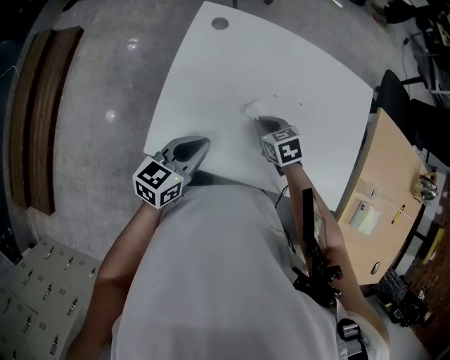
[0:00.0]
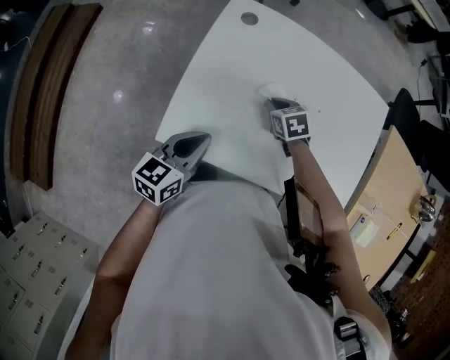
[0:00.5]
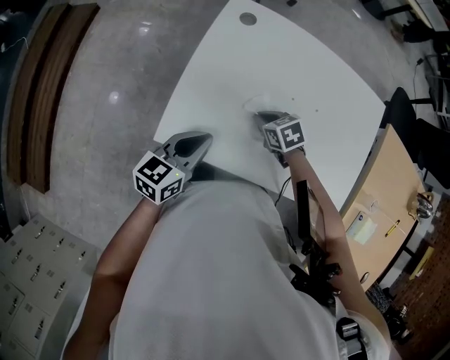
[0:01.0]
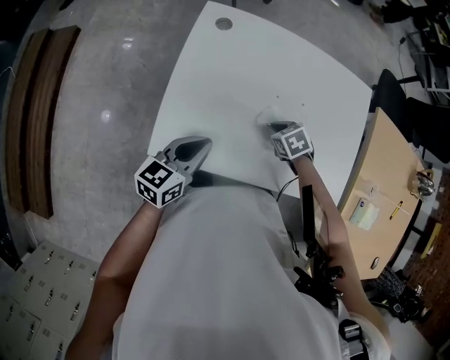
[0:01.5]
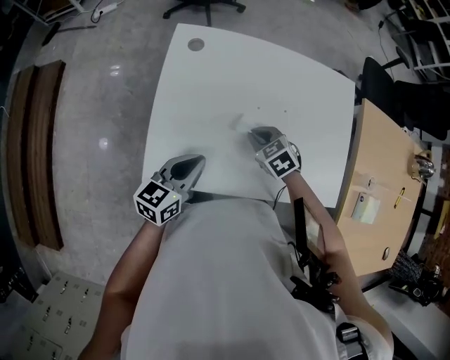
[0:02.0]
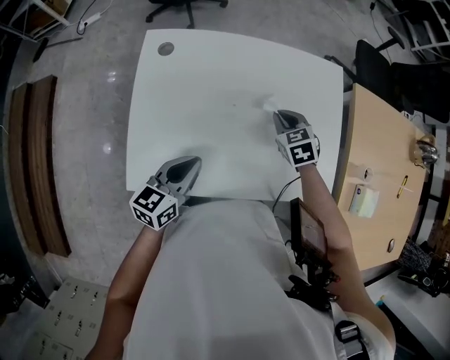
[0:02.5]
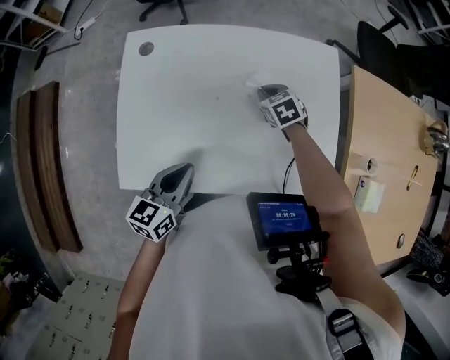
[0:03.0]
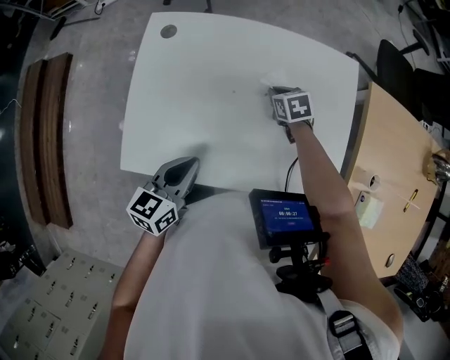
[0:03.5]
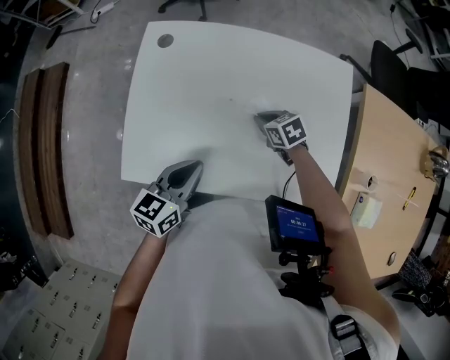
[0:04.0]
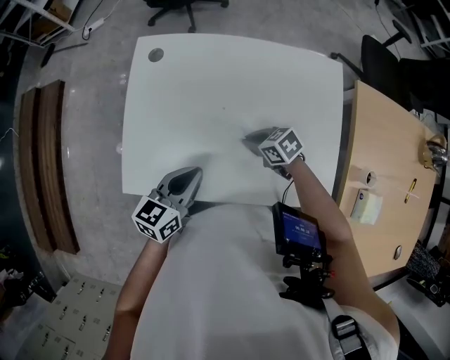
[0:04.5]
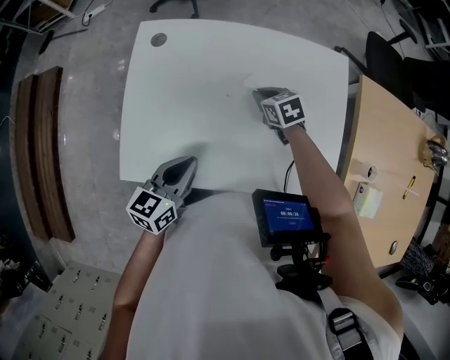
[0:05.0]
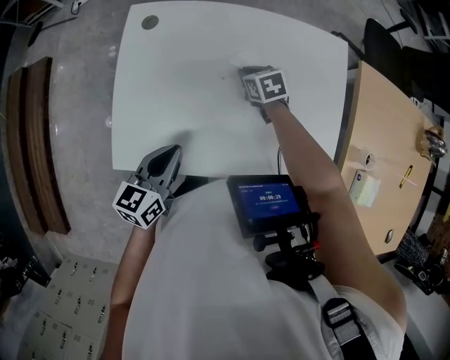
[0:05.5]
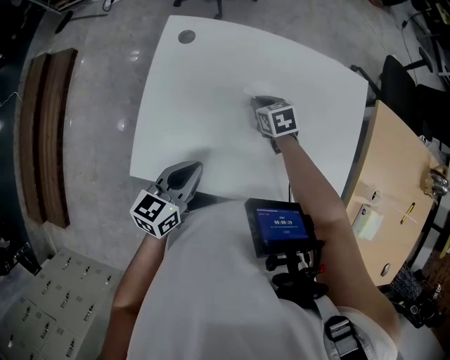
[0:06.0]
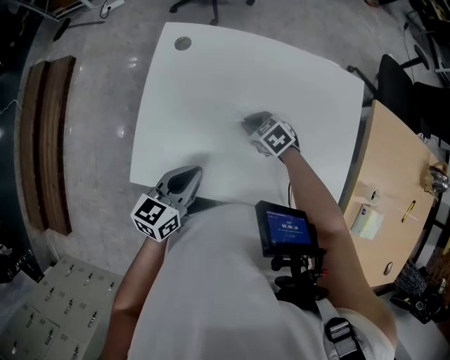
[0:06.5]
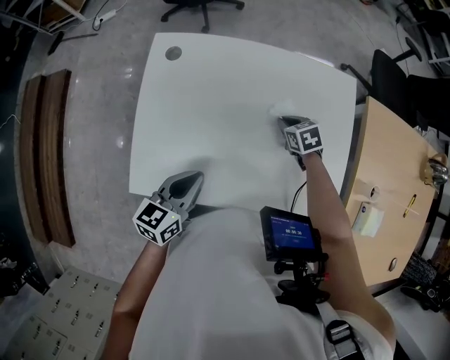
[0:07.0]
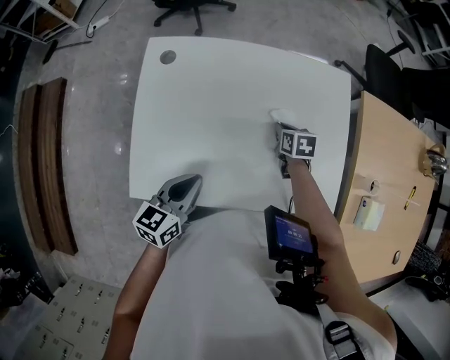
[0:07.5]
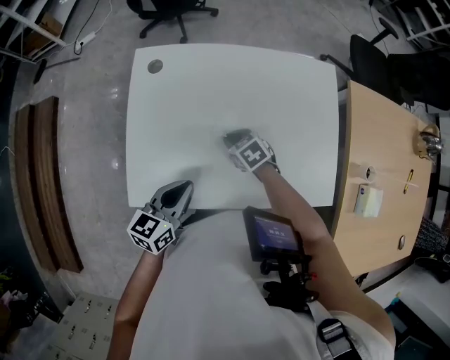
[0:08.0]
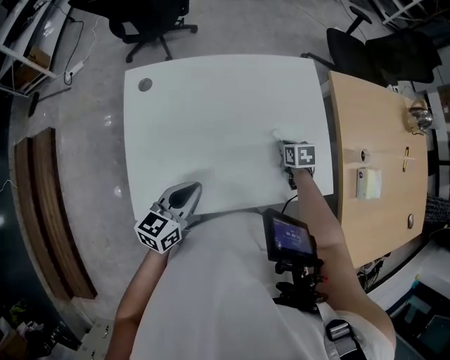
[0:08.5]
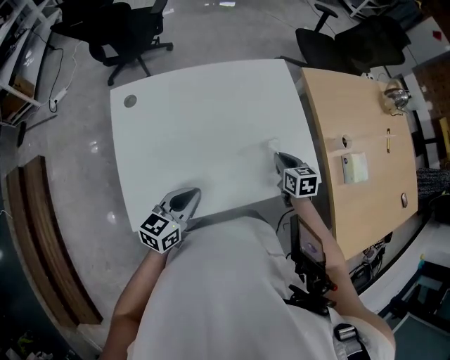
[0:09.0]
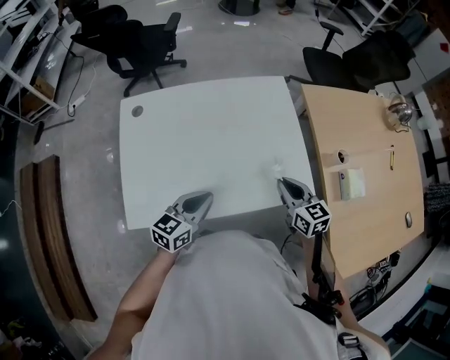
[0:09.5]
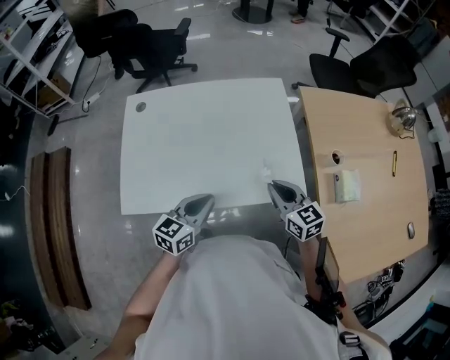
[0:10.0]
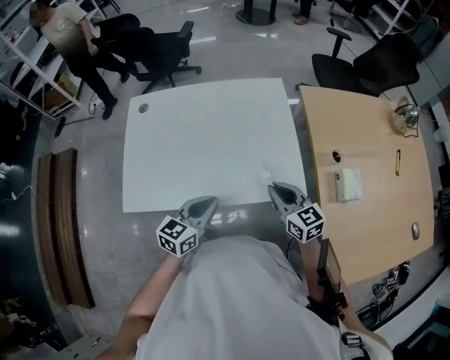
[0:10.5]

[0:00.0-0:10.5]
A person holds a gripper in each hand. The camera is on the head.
0:00.0 to 0:02.0: The right gripper travels to the left and back again, approximately 5 cm each way.
0:02.0 to 0:04.0: The right gripper is displaced to the right and forward by roughly 10 cm, and swivels about 20 degrees, while the left gripper travels to the right by about 10 cm.
0:04.0 to 0:06.5: The right gripper goes forward and backward, approximately 15 cm each way, reversing 2 times, and swivels approximately 20 degrees.
0:06.5 to 0:08.5: The right gripper changes place by about 25 cm, and twists roughly 50 degrees clockwise, seen from behind.
0:08.5 to 0:10.5: The right gripper shifts about 25 cm upward and backward, and tips its fingers upward by some 40 degrees. The left gripper moves to the right, approximately 20 cm.

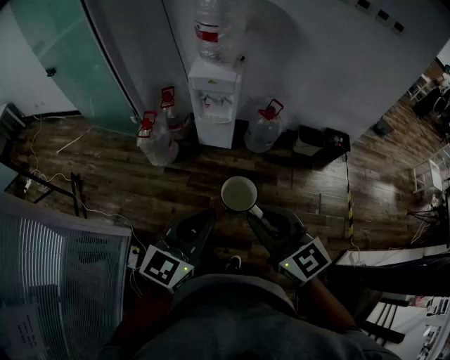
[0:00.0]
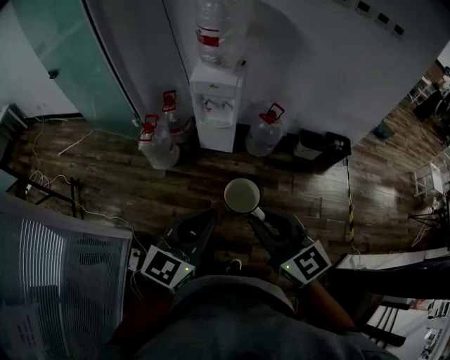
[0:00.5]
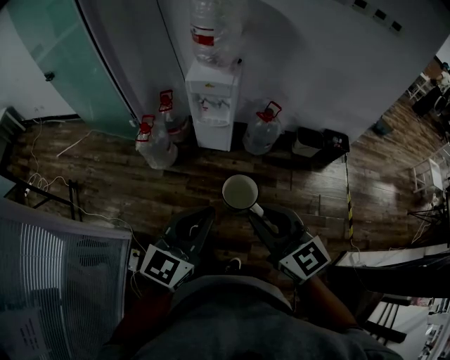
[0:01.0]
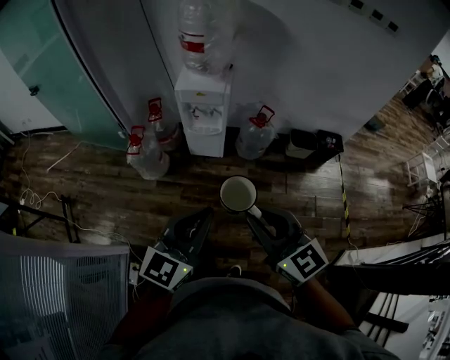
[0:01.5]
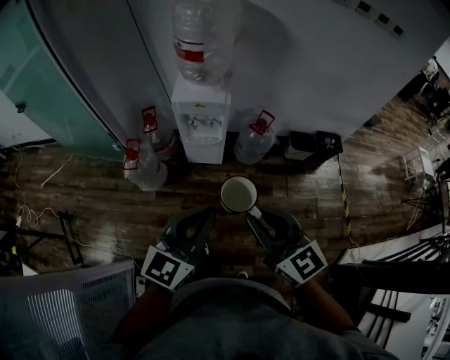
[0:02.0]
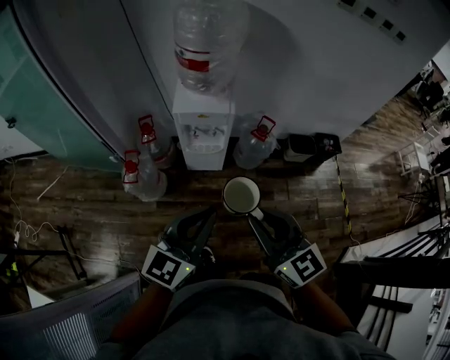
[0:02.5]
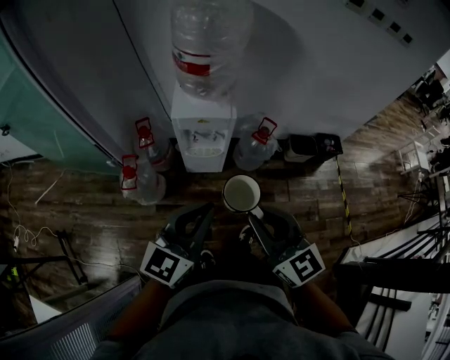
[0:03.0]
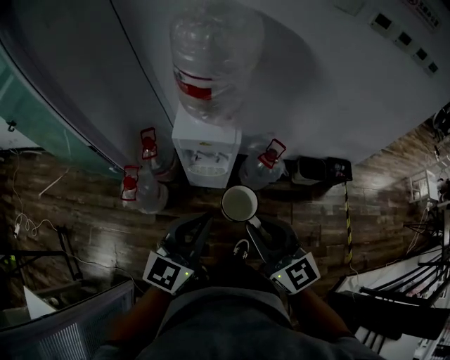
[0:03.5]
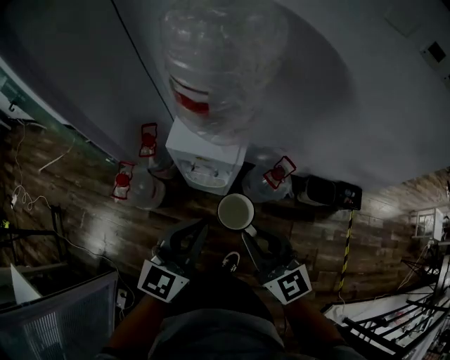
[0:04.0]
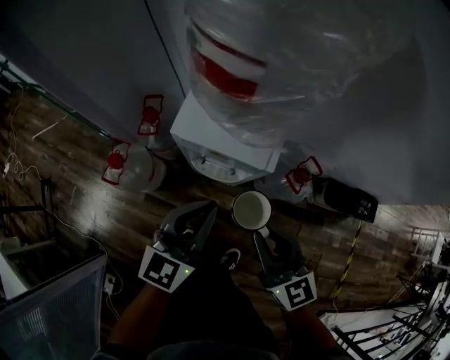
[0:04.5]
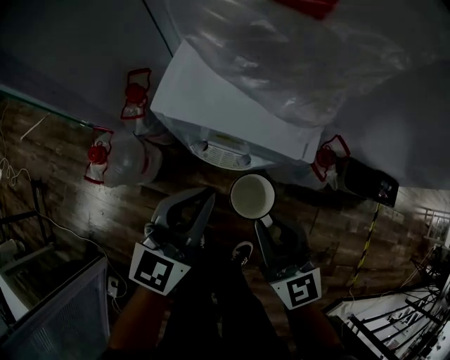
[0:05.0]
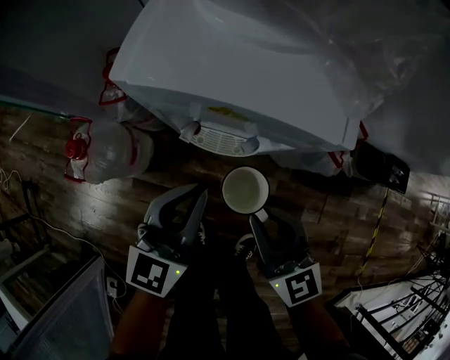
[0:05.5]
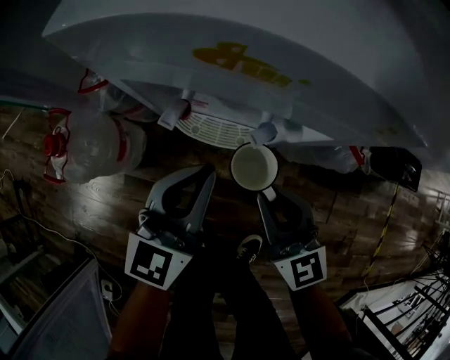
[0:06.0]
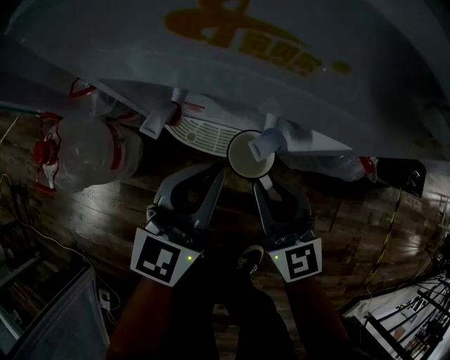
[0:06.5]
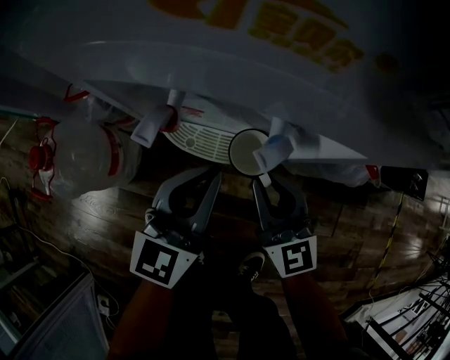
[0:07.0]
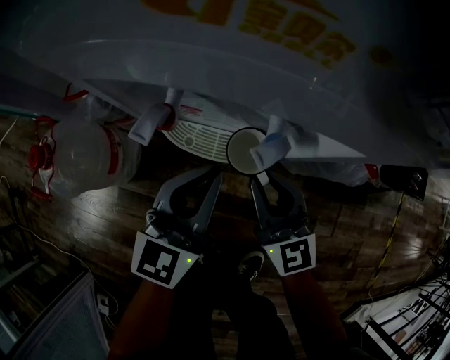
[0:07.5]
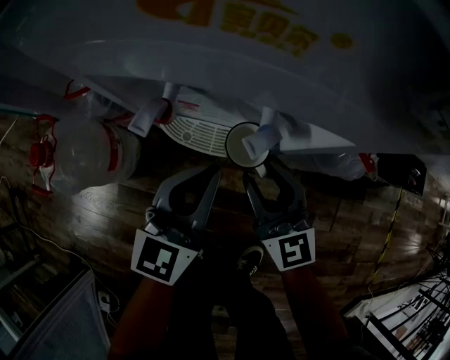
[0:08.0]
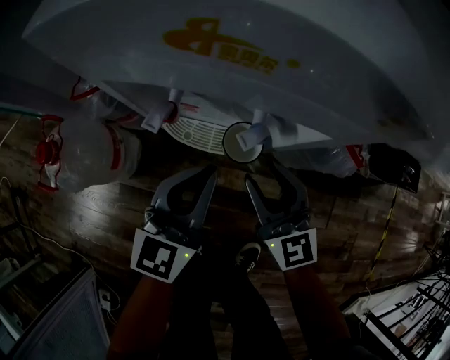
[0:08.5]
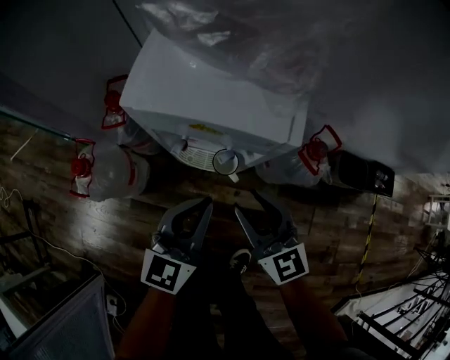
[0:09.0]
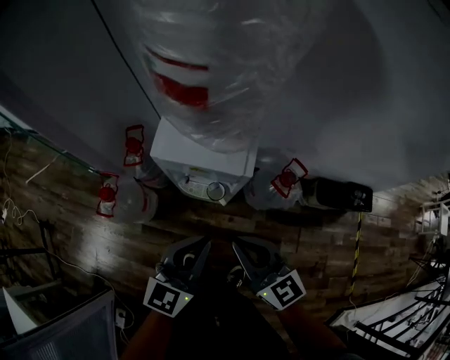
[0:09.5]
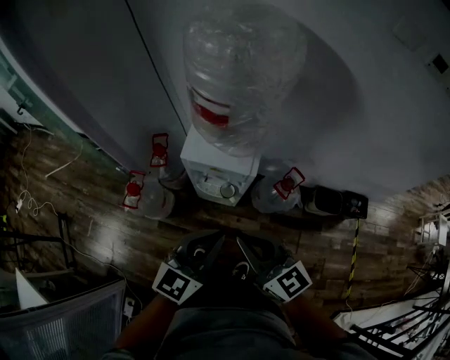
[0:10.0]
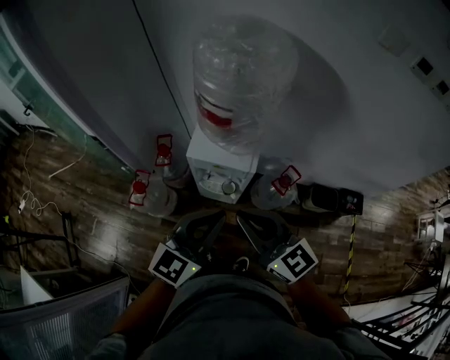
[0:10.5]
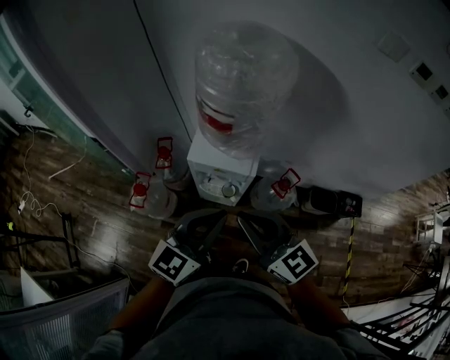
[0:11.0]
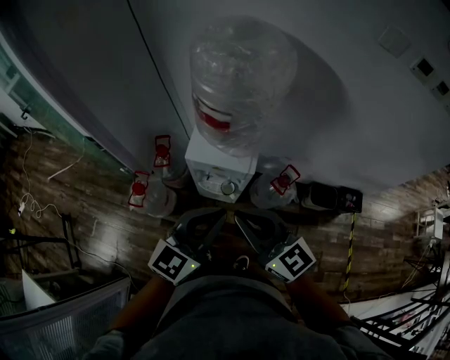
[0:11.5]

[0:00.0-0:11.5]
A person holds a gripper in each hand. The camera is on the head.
0:00.0 to 0:02.0: The two grippers go some 20 cm forward.
0:02.0 to 0:04.0: The two grippers go approximately 35 cm forward.
0:04.0 to 0:06.0: Both grippers move downward, approximately 50 cm.
0:06.0 to 0:07.5: Both grippers travel together downward, approximately 5 cm.
0:07.5 to 0:09.5: The two grippers go roughly 40 cm upward. The right gripper opens, then closes once more.
0:09.5 to 0:11.5: Both grippers move upward, approximately 25 cm.

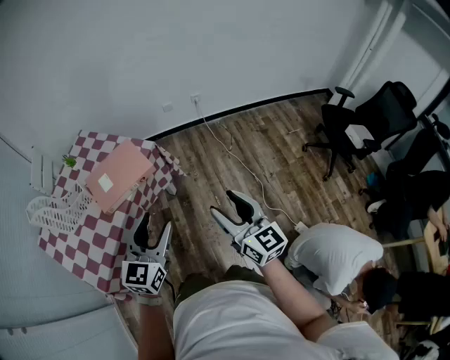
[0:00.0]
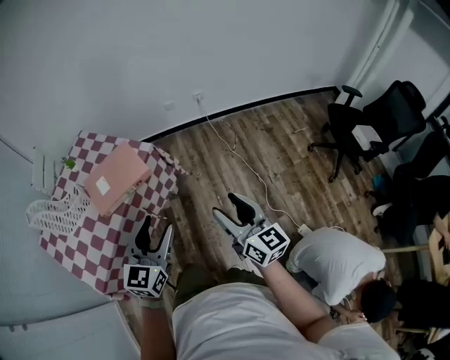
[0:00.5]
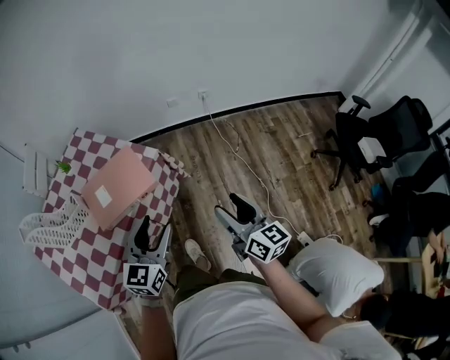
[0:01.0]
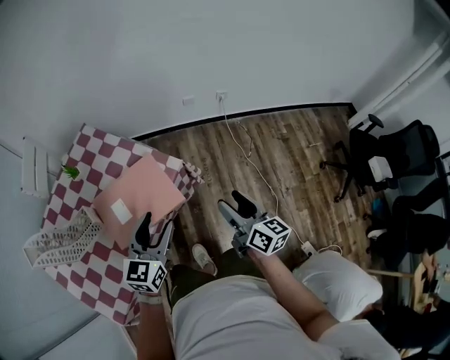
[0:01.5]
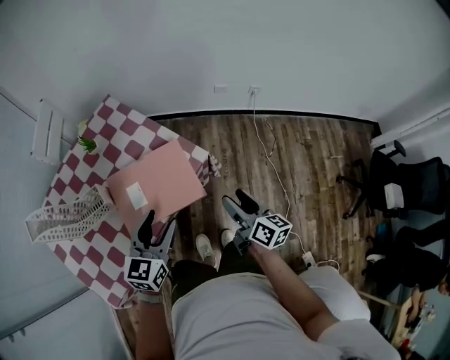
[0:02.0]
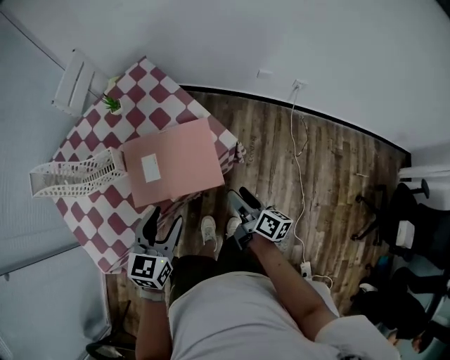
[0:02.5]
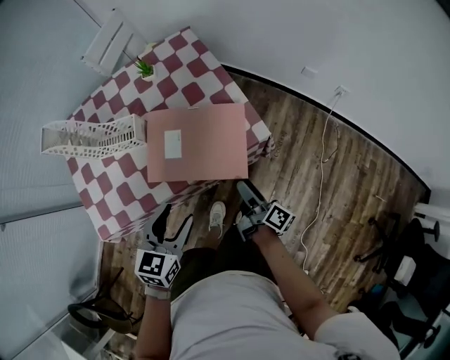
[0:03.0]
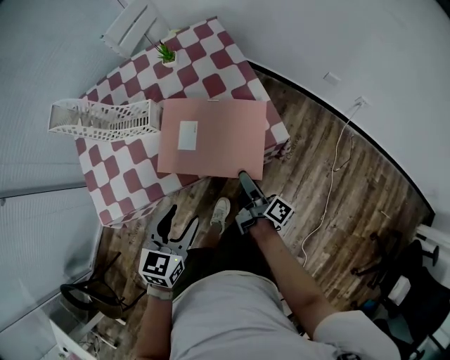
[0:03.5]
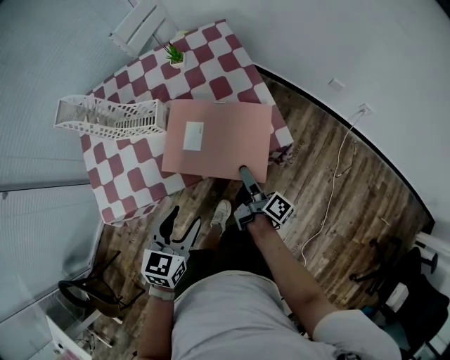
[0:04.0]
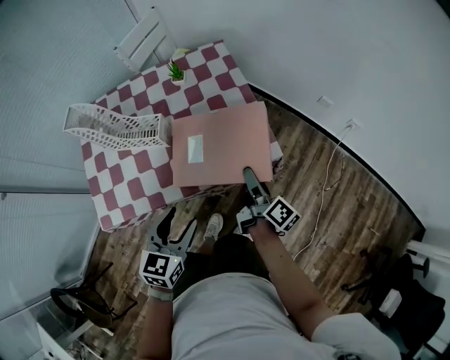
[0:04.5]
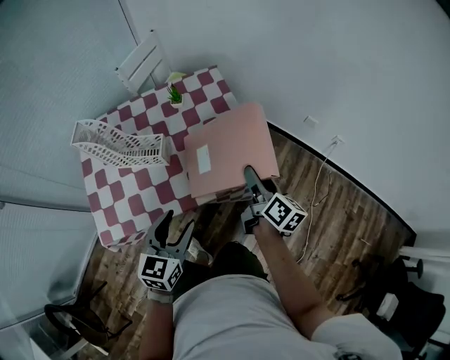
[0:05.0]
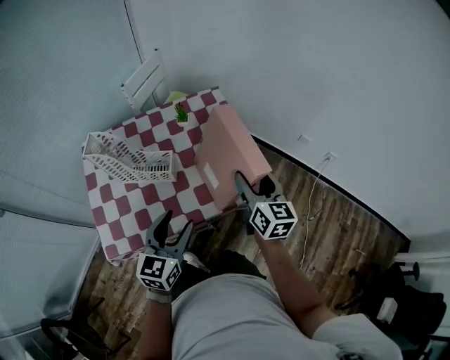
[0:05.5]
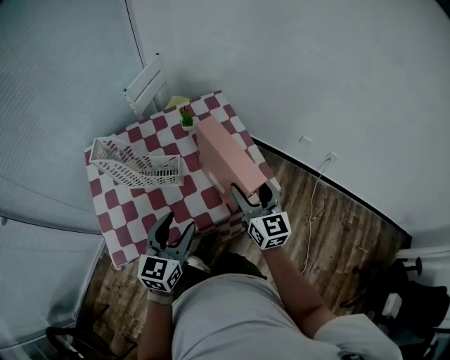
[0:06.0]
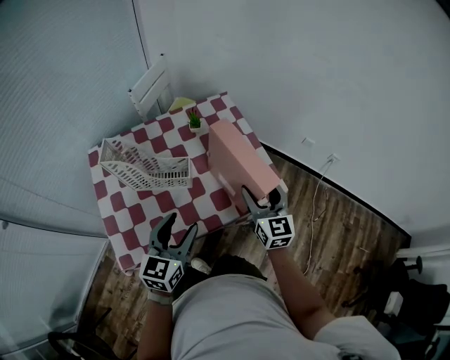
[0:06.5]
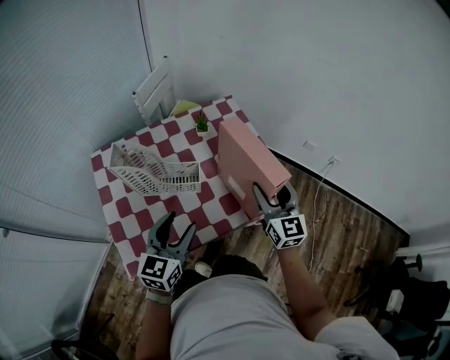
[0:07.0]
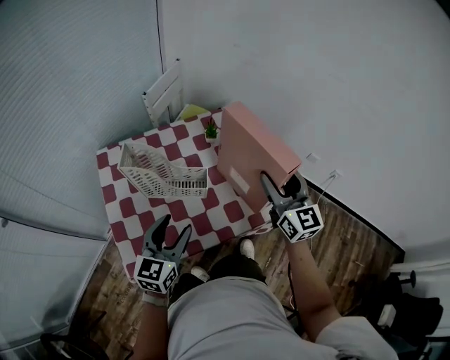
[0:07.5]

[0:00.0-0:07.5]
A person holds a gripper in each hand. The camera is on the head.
0:00.0 to 0:02.0: The left gripper travels forward and to the left by some 30 cm, and changes its angle by some 20 degrees, while the right gripper moves forward, downward and to the left, some 35 cm, and swivels some 40 degrees.
0:02.0 to 0:04.0: The left gripper changes place by about 15 cm, and rotates about 30 degrees, while the right gripper changes place by some 20 cm, and turns by roughly 50 degrees.
0:04.0 to 0:05.5: The left gripper goes approximately 15 cm upward and forward. Meanwhile the right gripper is displaced upward by roughly 25 cm, and twists some 70 degrees counterclockwise, seen from behind.
0:05.5 to 0:07.5: The left gripper heads to the left, covering approximately 15 cm, while the right gripper heads to the left and upward, covering about 10 cm, and rotates about 20 degrees.
